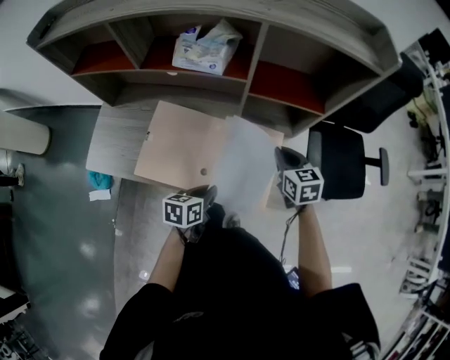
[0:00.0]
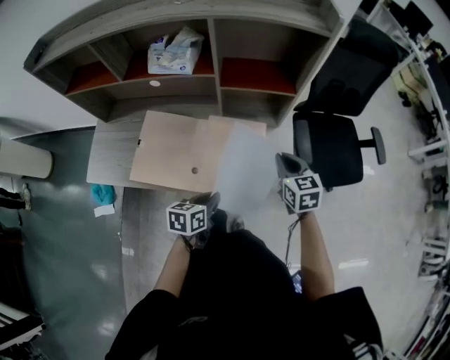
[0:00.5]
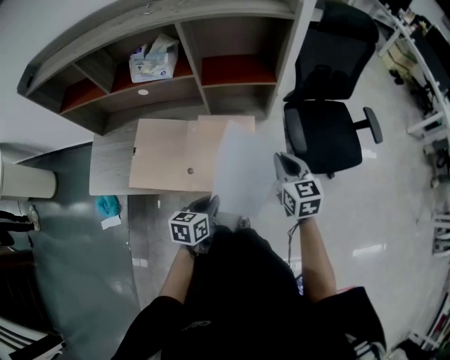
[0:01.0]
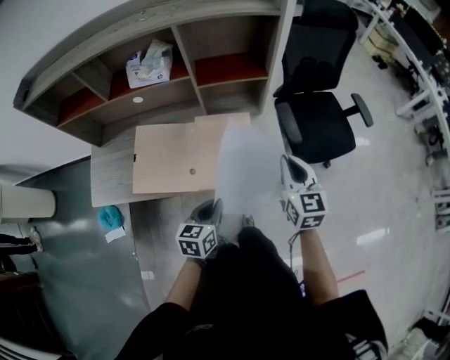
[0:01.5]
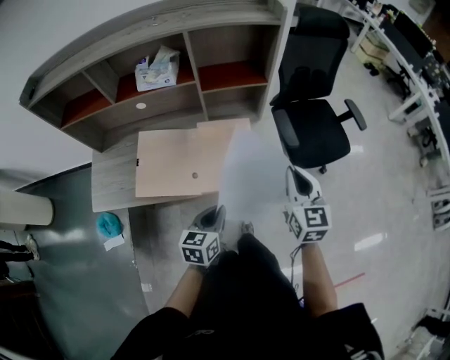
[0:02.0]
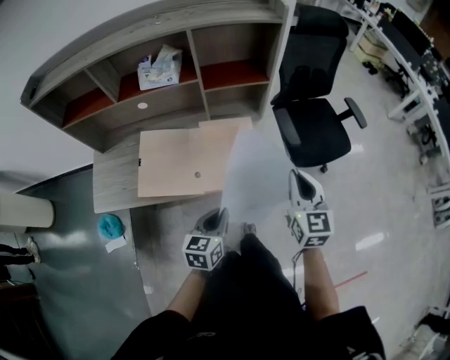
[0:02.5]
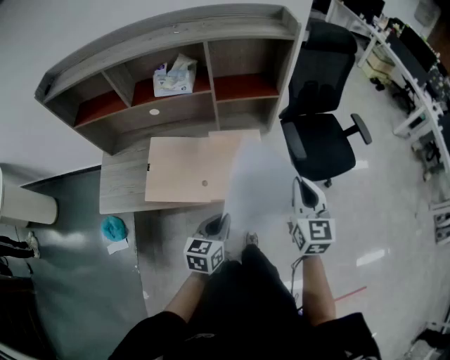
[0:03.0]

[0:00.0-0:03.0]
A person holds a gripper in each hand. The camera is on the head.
0:00.0 to 0:01.5: The left gripper shifts roughly 15 cm backward, to the right and upward, and changes its angle by approximately 20 degrees. Meanwhile the right gripper heads backward, to the right and upward, covering about 20 cm, and changes its angle by roughly 30 degrees.
0:01.5 to 0:03.0: The left gripper ends up some 5 cm from where it was, while the right gripper heads backward and upward, covering about 10 cm.

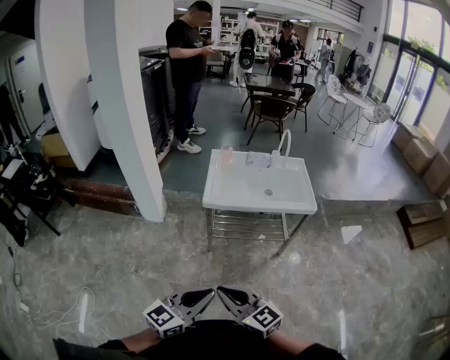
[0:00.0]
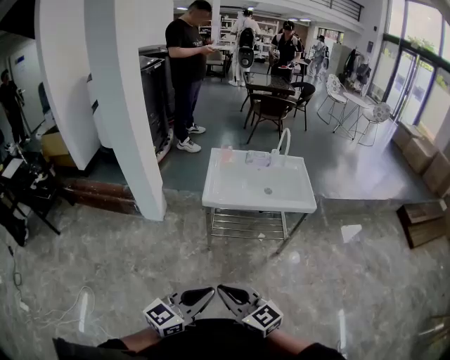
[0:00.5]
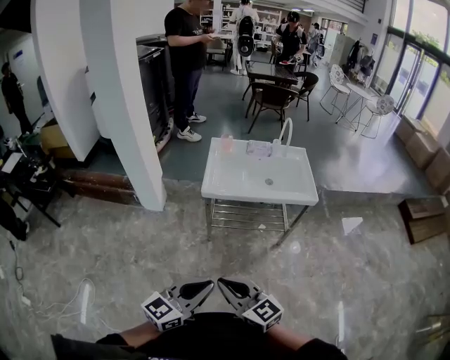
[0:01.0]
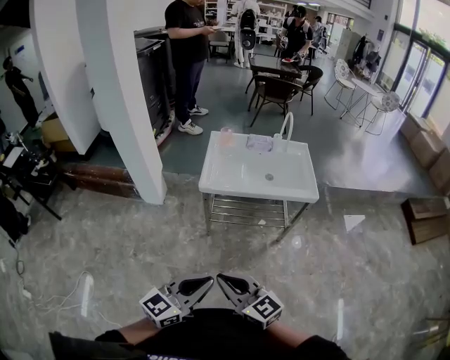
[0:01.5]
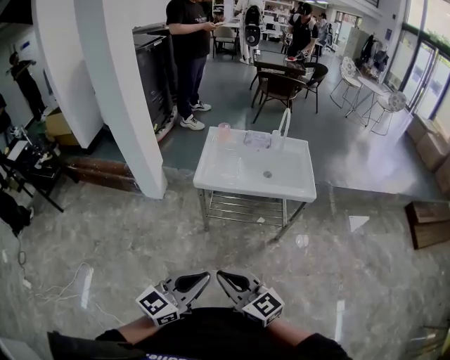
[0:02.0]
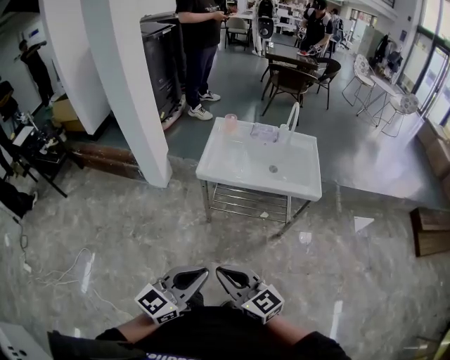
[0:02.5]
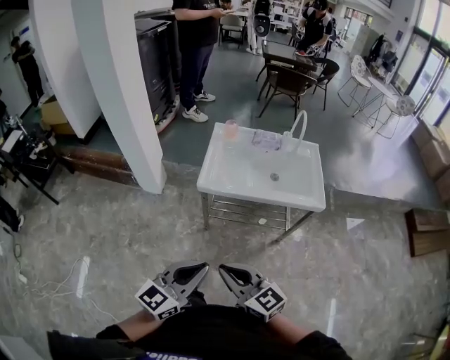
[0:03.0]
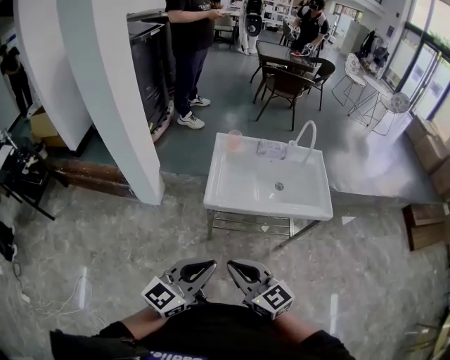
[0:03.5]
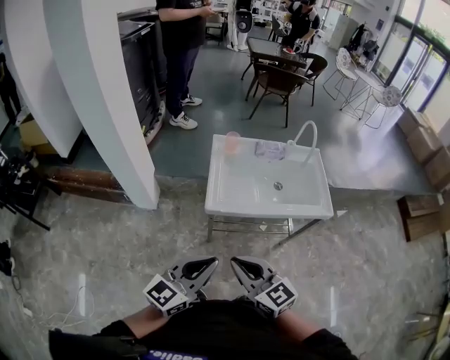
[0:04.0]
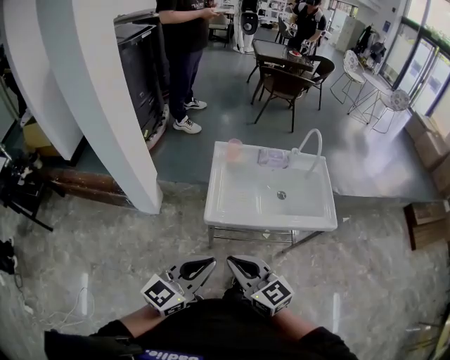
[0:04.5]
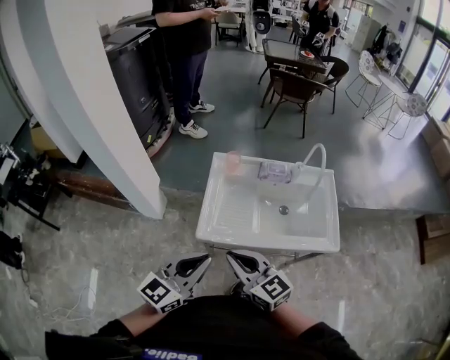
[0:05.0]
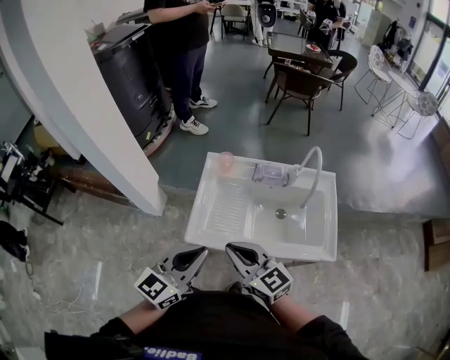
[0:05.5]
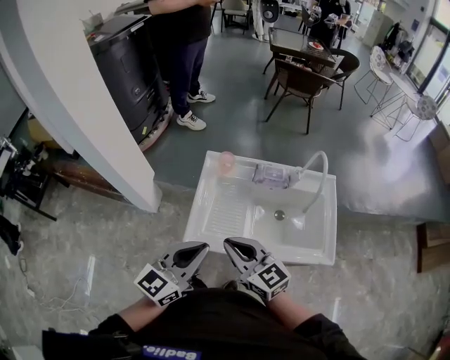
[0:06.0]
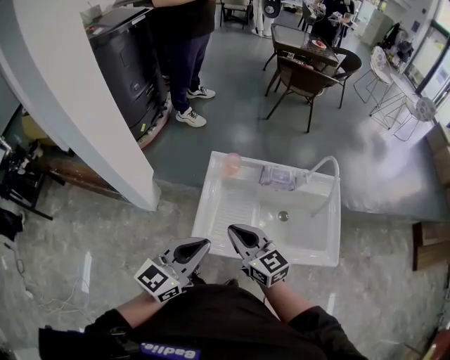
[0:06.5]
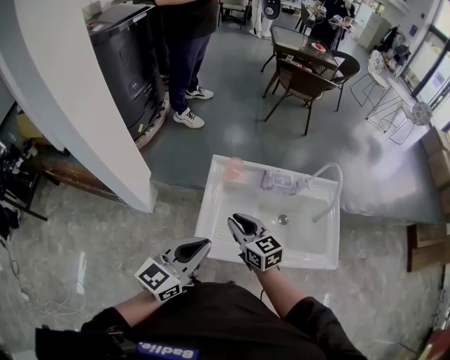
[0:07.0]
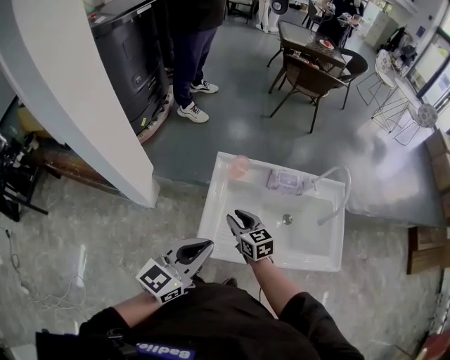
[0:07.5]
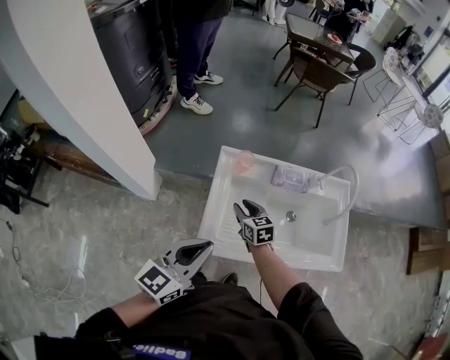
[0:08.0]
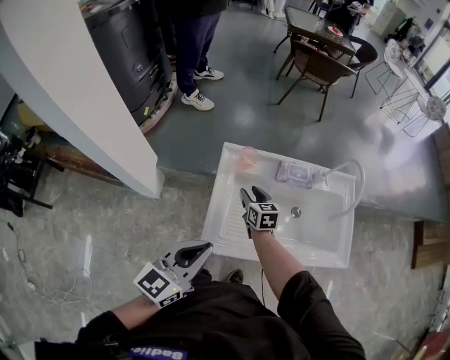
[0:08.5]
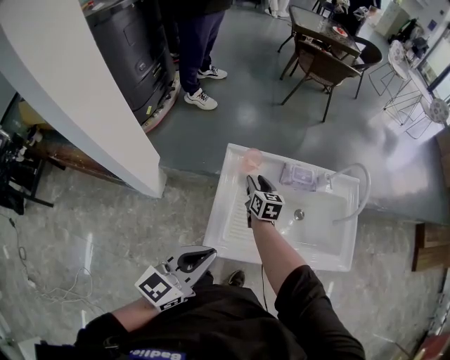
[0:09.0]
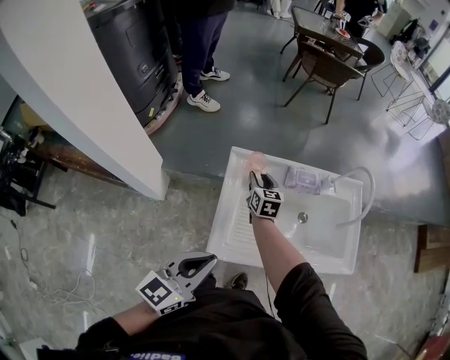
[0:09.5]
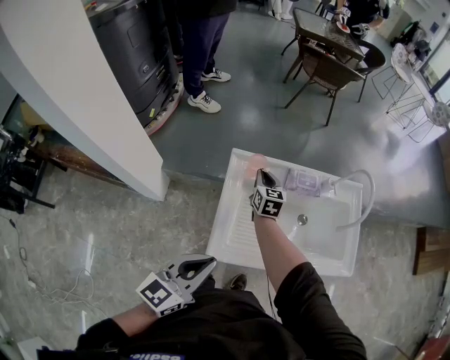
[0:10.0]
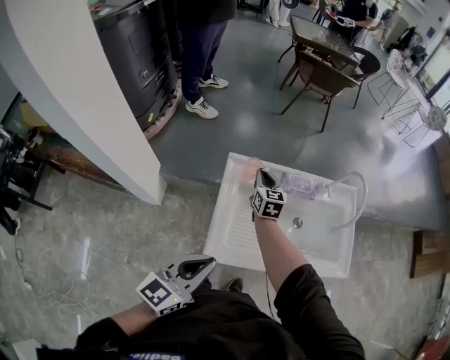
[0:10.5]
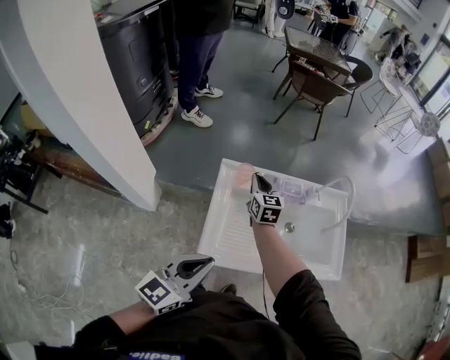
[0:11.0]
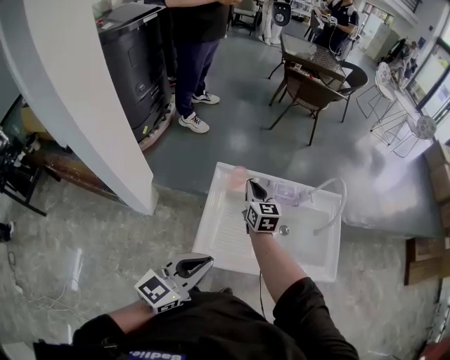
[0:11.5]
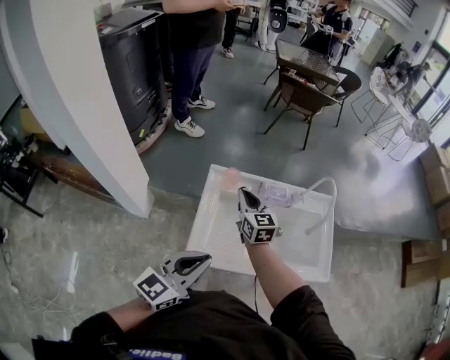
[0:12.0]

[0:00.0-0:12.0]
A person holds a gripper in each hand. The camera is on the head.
0:00.0 to 0:02.0: Both grippers move to the right, approximately 10 cm.
0:02.0 to 0:04.0: Both grippers travel together forward and to the left, about 25 cm.
0:04.0 to 0:06.0: The two grippers go approximately 25 cm forward and to the right.
0:06.0 to 0:08.0: The right gripper goes roughly 30 cm downward and forward, changes its angle by approximately 30 degrees, and opens up; the left gripper shifts about 10 cm to the left and forward.
0:08.0 to 0:10.0: The right gripper moves forward, some 15 cm, turns by about 20 degrees, and closes up.
0:10.0 to 0:12.0: The right gripper goes roughly 15 cm upward and backward. The left gripper shifts some 5 cm to the right.

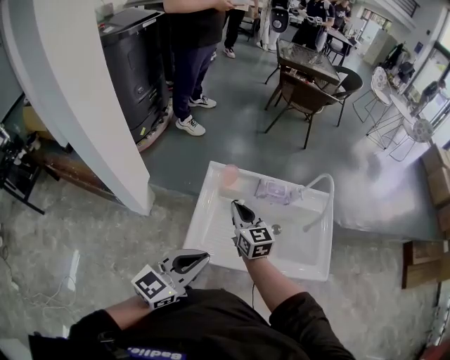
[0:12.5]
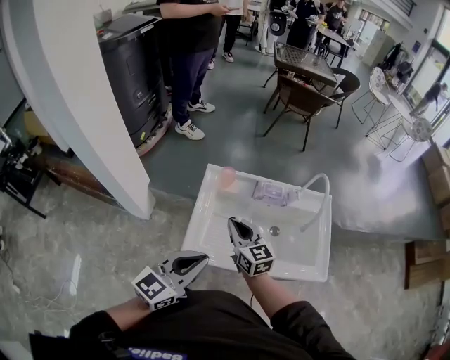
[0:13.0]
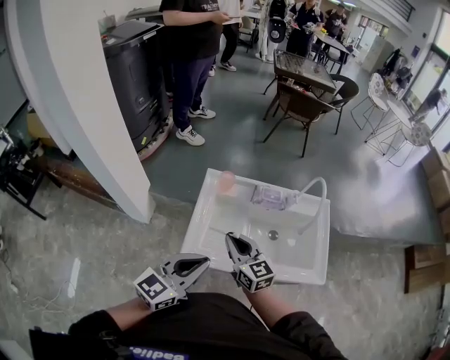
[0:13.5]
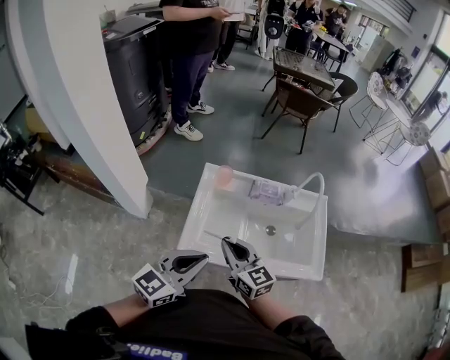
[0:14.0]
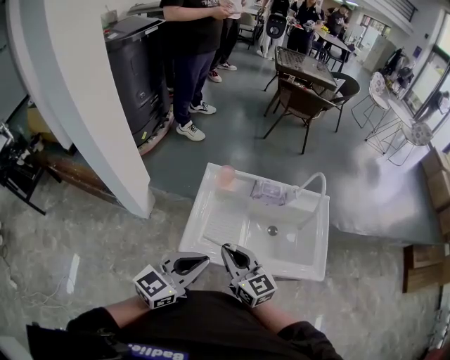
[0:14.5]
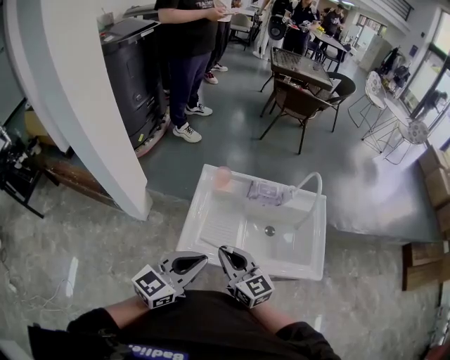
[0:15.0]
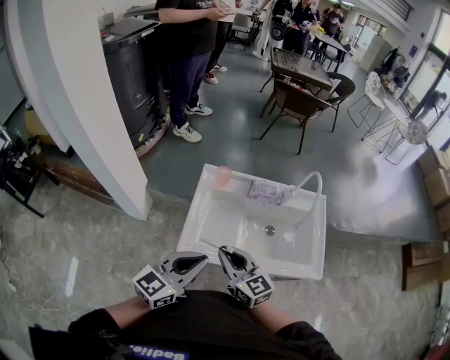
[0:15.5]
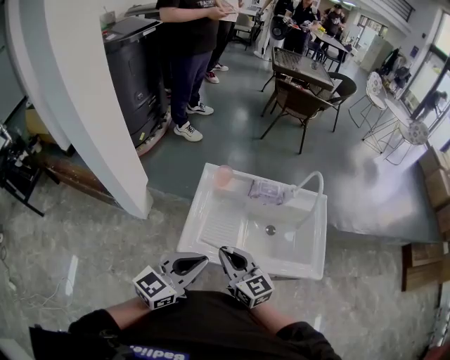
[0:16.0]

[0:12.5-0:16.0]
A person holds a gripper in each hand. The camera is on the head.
0:12.5 to 0:14.5: The right gripper heads backward, covering approximately 15 cm.
0:14.5 to 0:16.0: The grippers move only a little.

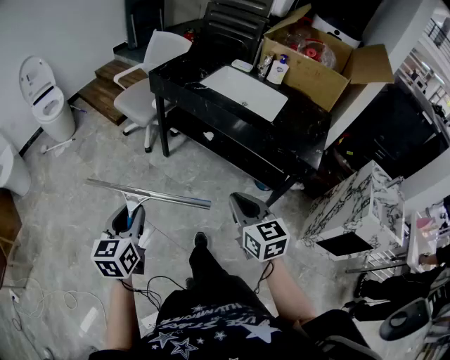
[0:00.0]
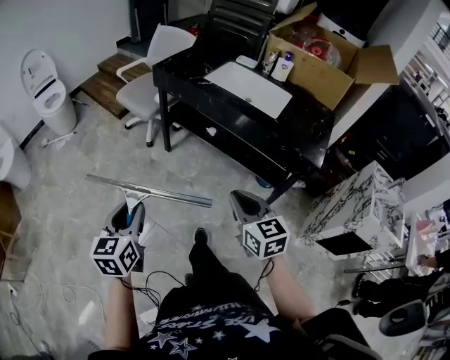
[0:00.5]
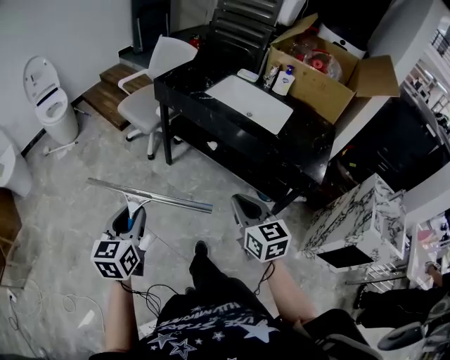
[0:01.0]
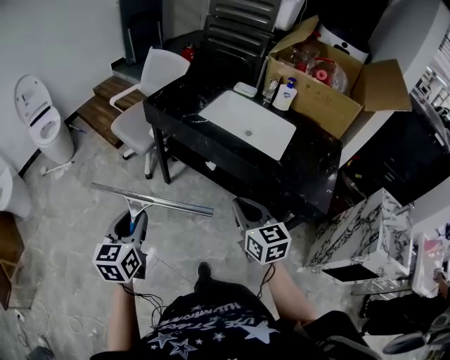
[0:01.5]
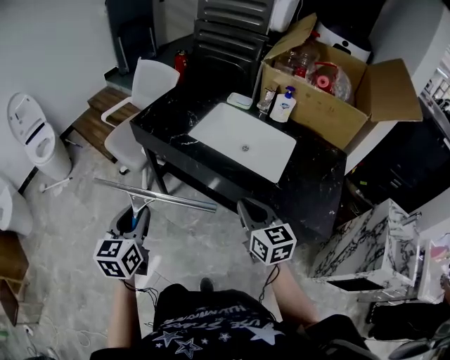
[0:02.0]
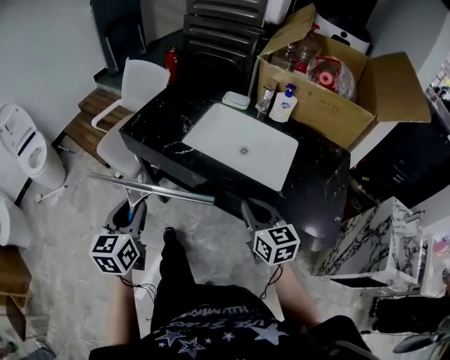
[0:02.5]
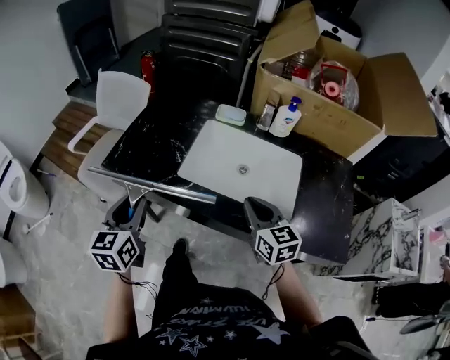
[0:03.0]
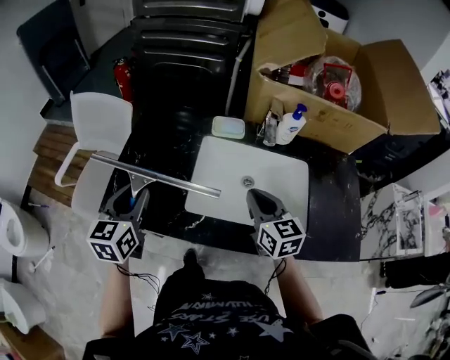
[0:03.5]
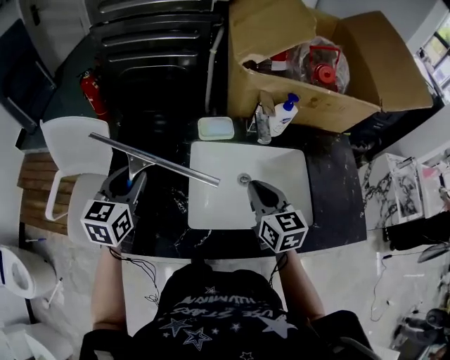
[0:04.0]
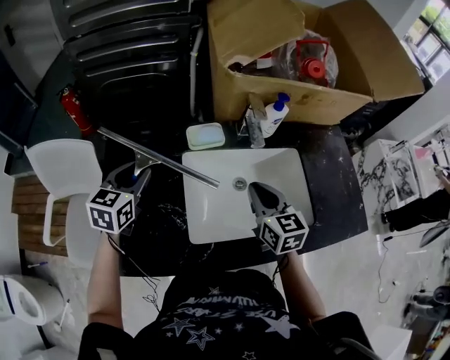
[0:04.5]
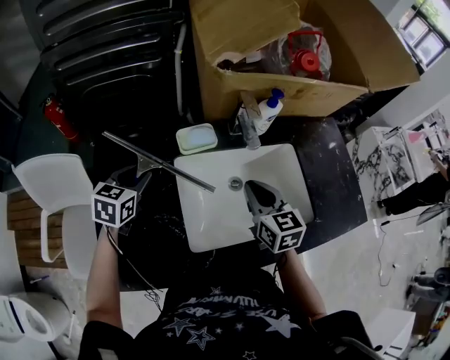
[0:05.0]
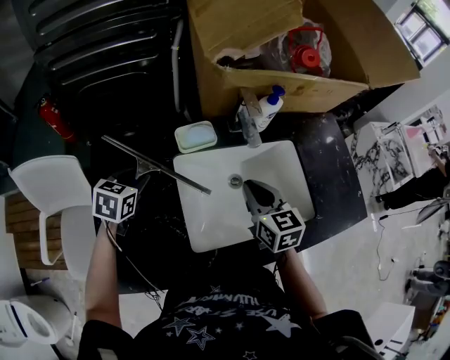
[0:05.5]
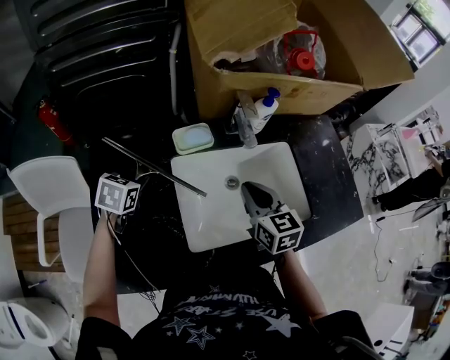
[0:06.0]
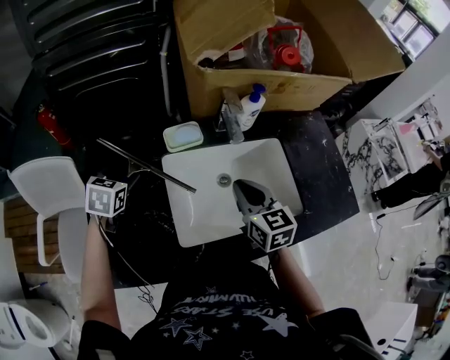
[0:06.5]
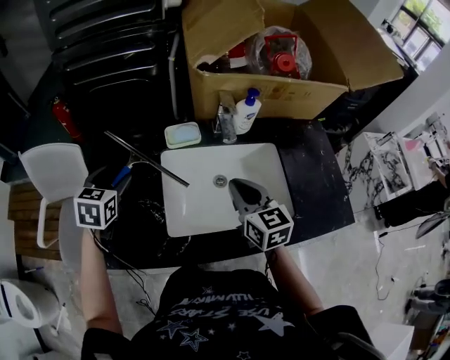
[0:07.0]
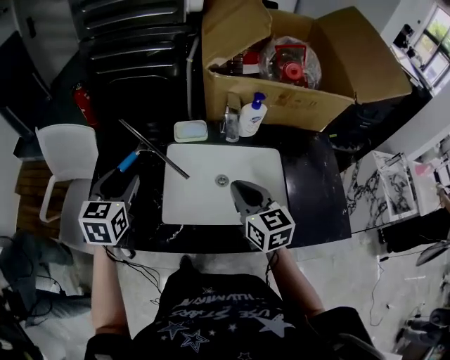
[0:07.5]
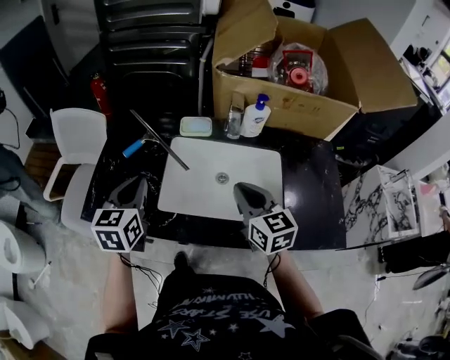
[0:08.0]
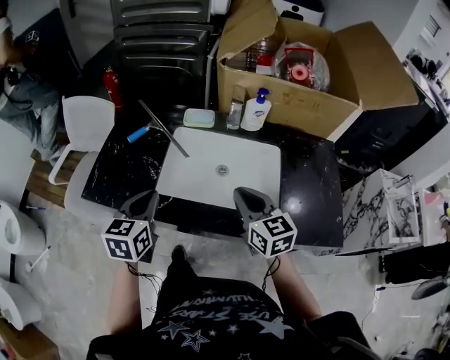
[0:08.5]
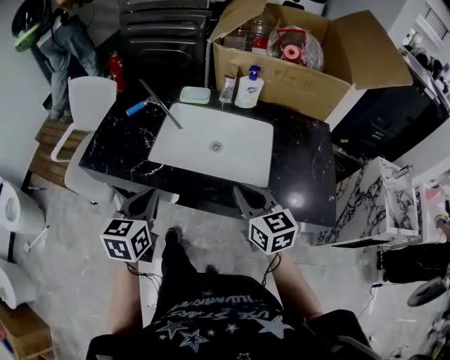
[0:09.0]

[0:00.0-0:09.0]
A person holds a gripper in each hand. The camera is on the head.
0:00.0 to 0:02.0: Both grippers travel together forward, roughly 30 cm.
0:02.0 to 0:04.5: The two grippers travel together, roughly 50 cm. The right gripper changes its angle by some 40 degrees. Meanwhile the left gripper turns by approximately 50 degrees.
0:04.5 to 0:07.0: The left gripper goes downward and returns, roughly 10 cm each way, and opens up.
0:07.0 to 0:09.0: The left gripper travels backward and to the right by some 40 cm, rotates approximately 30 degrees, and closes up, while the right gripper shifts some 25 cm backward and to the right.
